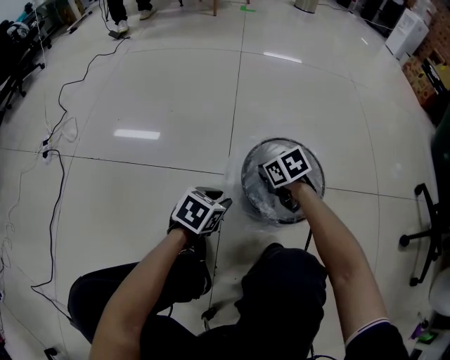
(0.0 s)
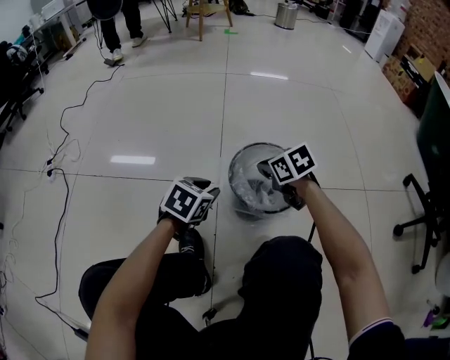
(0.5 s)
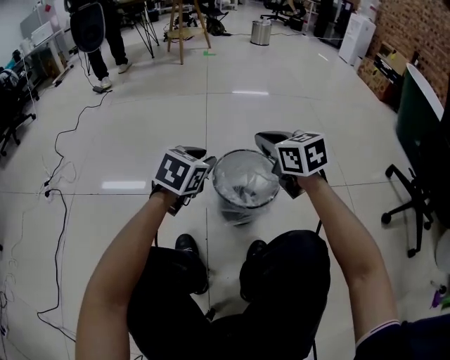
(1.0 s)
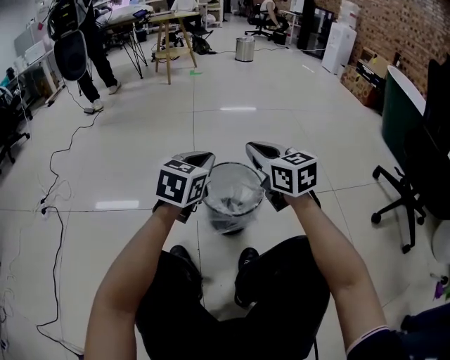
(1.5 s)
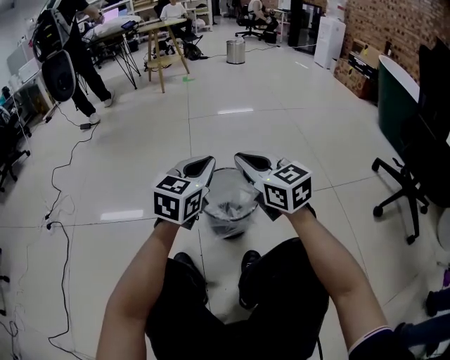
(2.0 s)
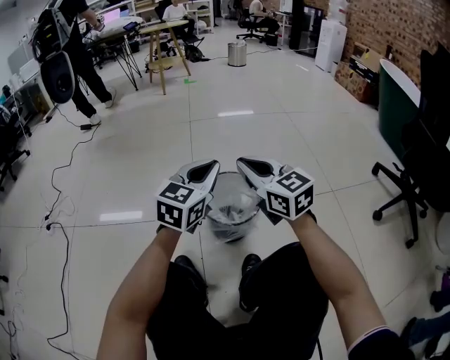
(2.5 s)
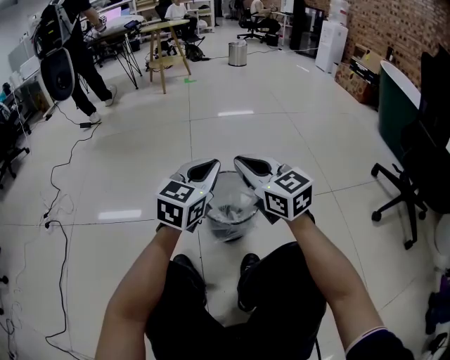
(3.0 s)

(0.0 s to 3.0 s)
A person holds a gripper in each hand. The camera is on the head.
0.0 s - 1.5 s: The grippers both shift upward by about 30 cm. The right gripper tips its fingers upward by some 40 degrees. The left gripper rotates some 30 degrees, and closes its fingers.
1.5 s - 3.0 s: The grippers make only small movements.

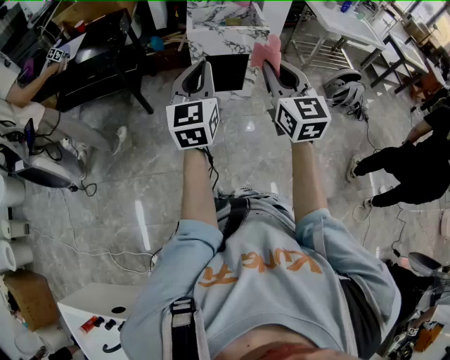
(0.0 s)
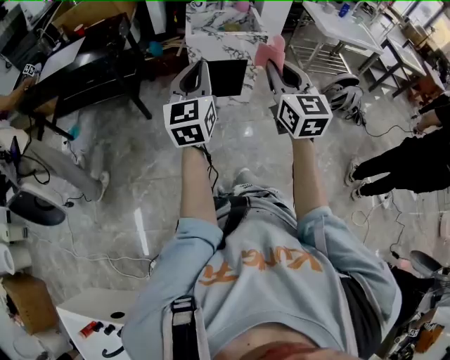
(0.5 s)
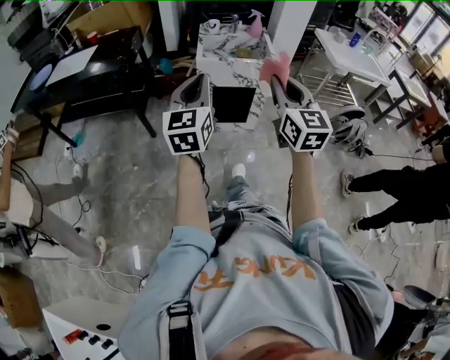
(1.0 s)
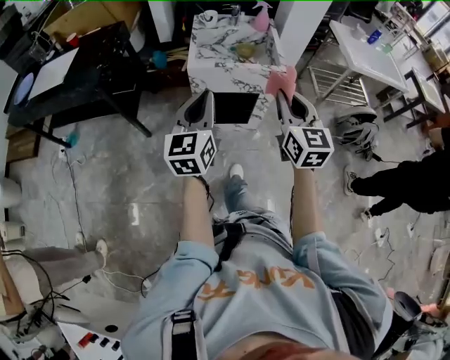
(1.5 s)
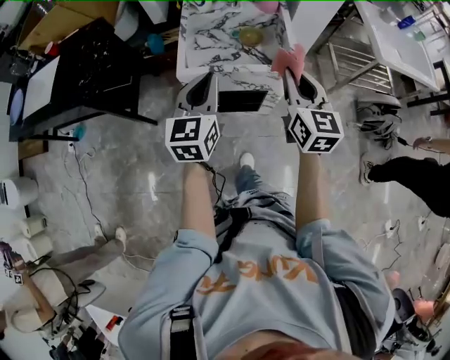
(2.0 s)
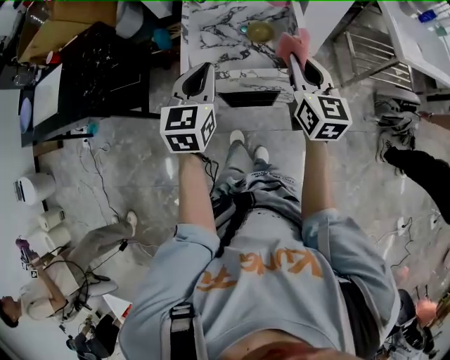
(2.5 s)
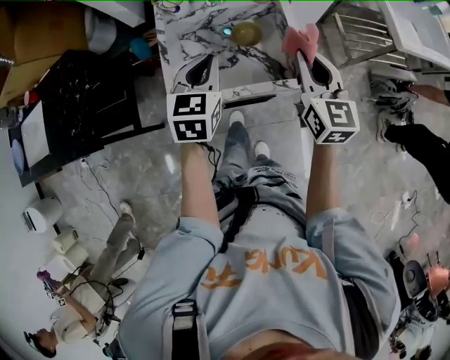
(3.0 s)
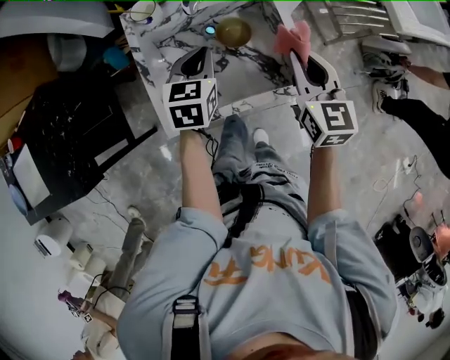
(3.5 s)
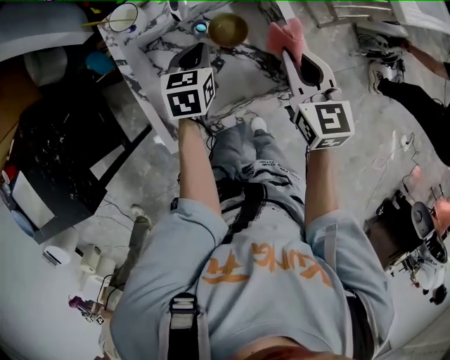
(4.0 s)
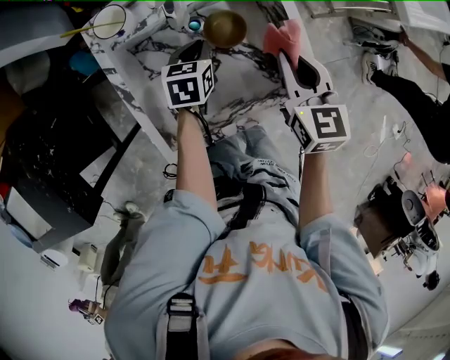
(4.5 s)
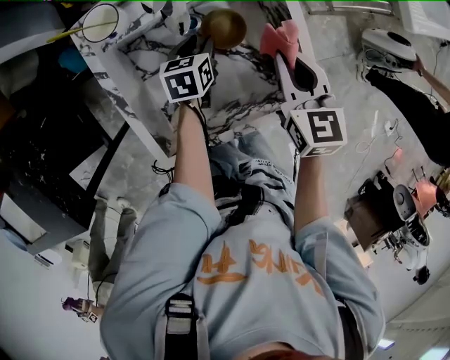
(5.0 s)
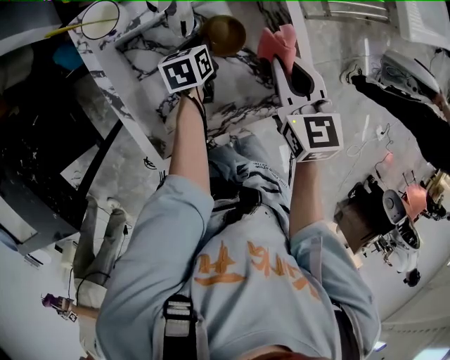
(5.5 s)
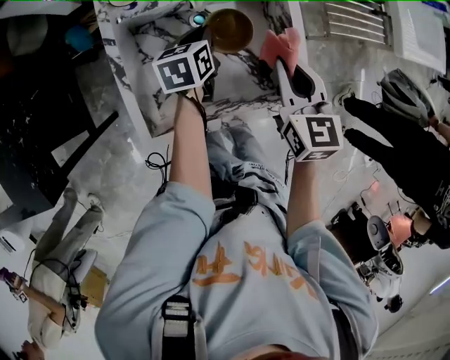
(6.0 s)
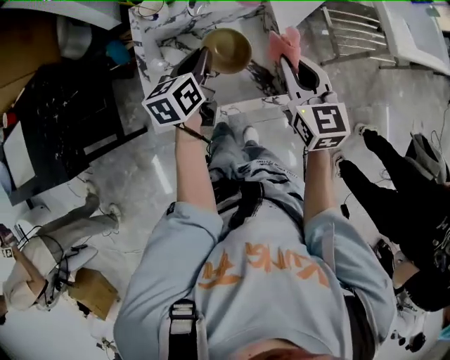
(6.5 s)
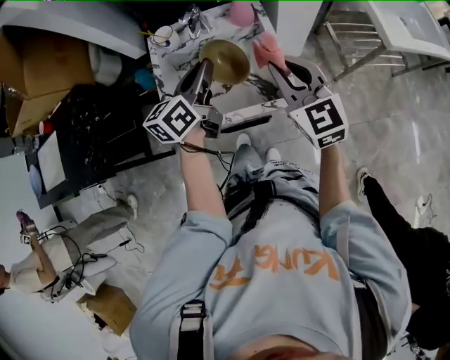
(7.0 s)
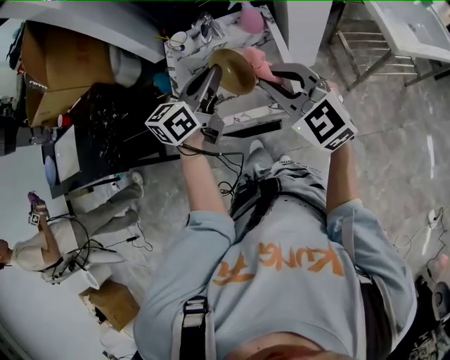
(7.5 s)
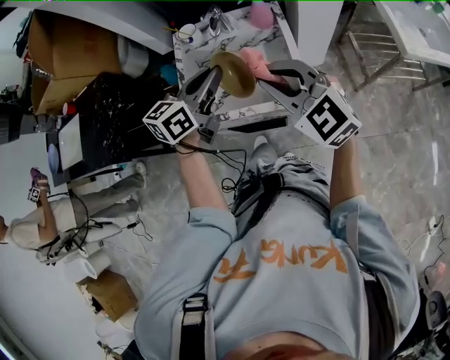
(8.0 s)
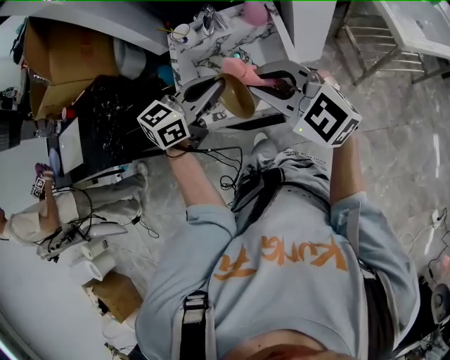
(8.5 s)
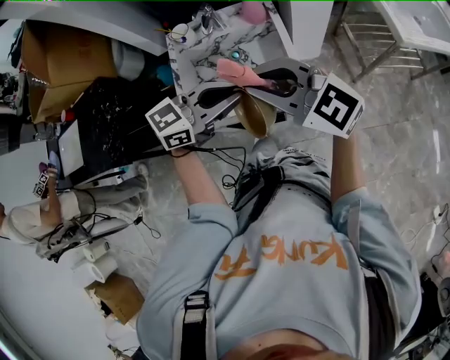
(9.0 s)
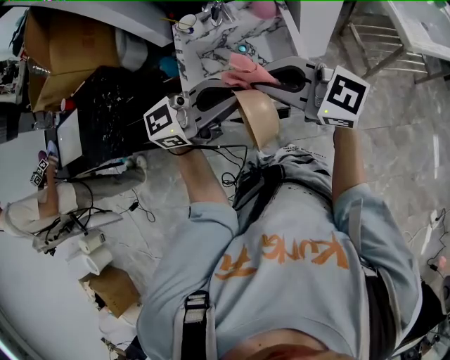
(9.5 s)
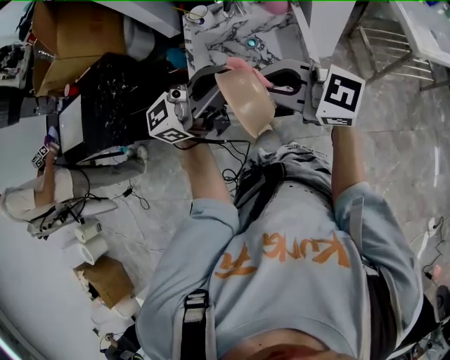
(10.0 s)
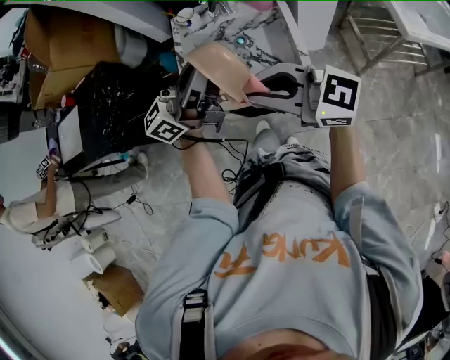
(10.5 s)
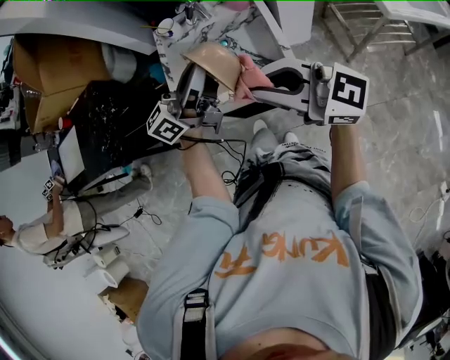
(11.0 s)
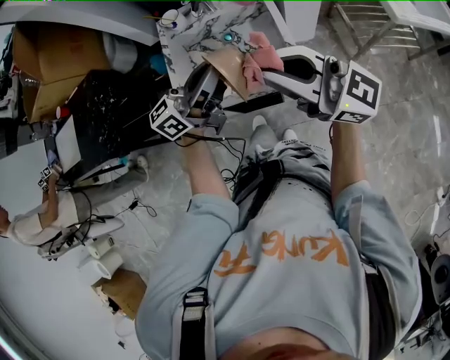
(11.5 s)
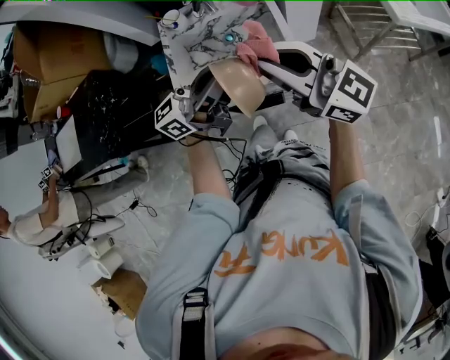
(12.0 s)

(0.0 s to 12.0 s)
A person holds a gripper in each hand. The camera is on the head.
0.0 s - 2.0 s: The pair of grippers is taken forward, about 50 cm.
2.0 s - 4.0 s: Both grippers move forward and downward, approximately 35 cm. The left gripper points its fingers roughly 30 degrees further downward; the right gripper rotates some 20 degrees.
4.0 s - 6.0 s: The left gripper goes downward and returns, approximately 15 cm each way, rotates approximately 20 degrees, and opens and closes again.
6.0 s - 8.0 s: The two grippers go roughly 25 cm upward and backward. The left gripper swivels about 30 degrees. Meanwhile the right gripper changes its angle by approximately 50 degrees.
8.0 s - 10.0 s: The right gripper shifts by some 10 cm, and rotates about 40 degrees; the left gripper ends up roughly 15 cm from where it was, and tips its fingers upward by about 30 degrees.
10.0 s - 12.0 s: The right gripper moves some 10 cm, and swivels some 30 degrees. Meanwhile the left gripper goes some 5 cm downward.

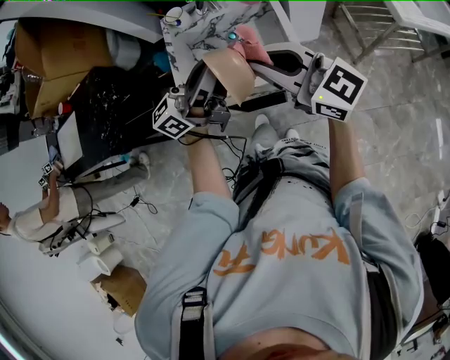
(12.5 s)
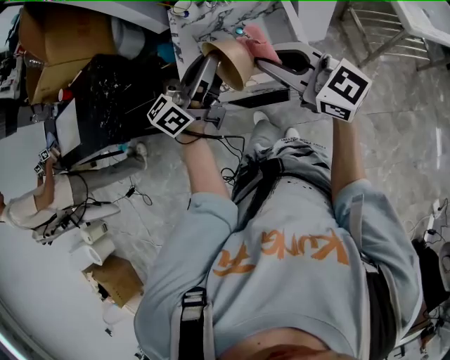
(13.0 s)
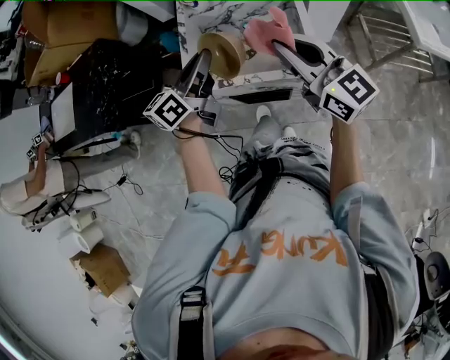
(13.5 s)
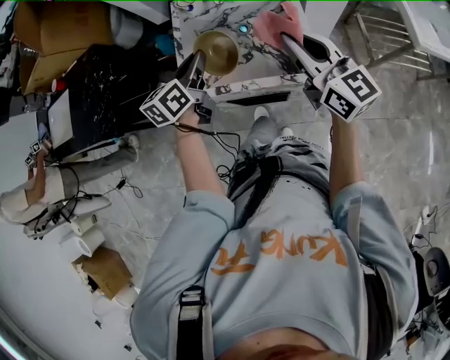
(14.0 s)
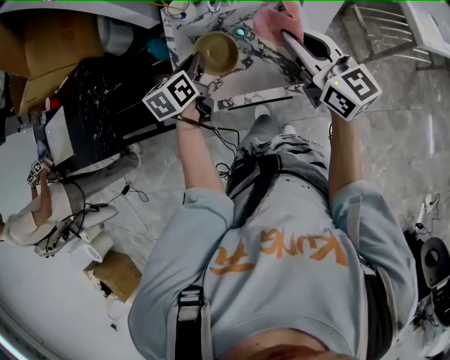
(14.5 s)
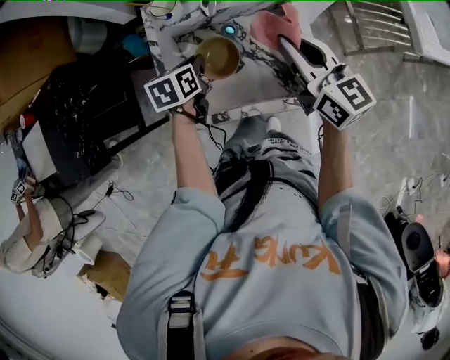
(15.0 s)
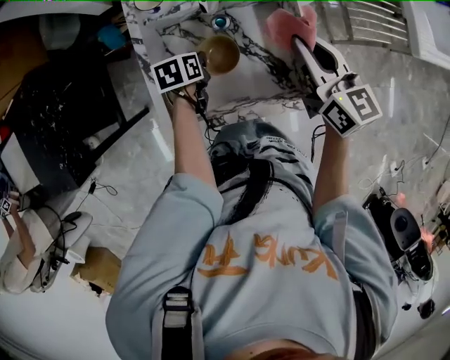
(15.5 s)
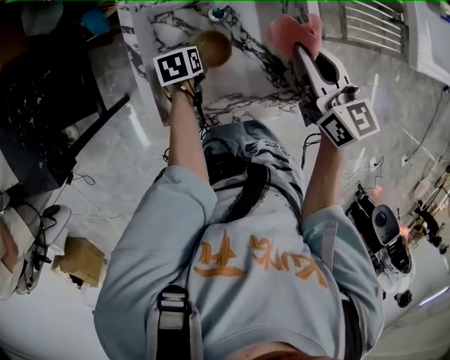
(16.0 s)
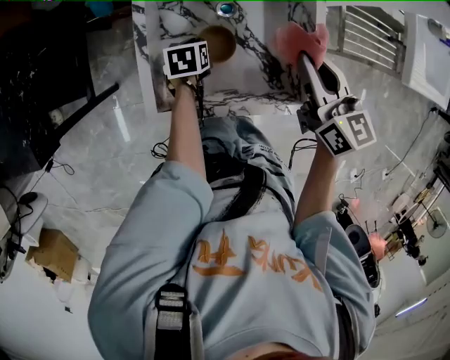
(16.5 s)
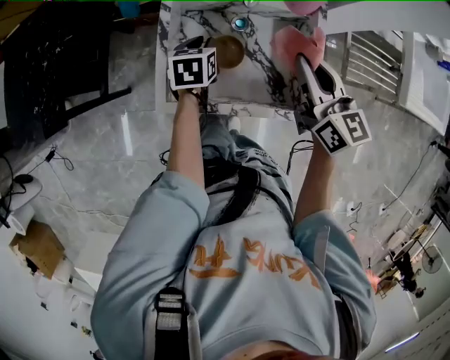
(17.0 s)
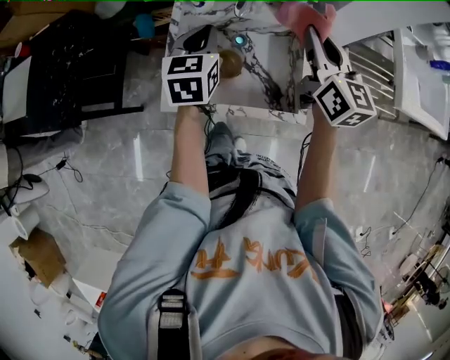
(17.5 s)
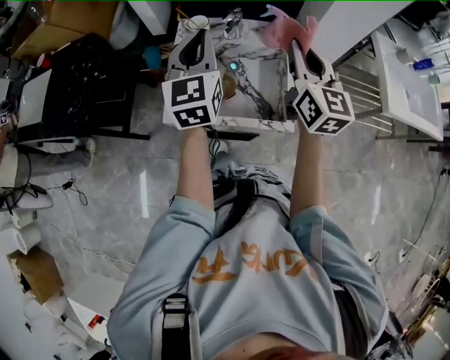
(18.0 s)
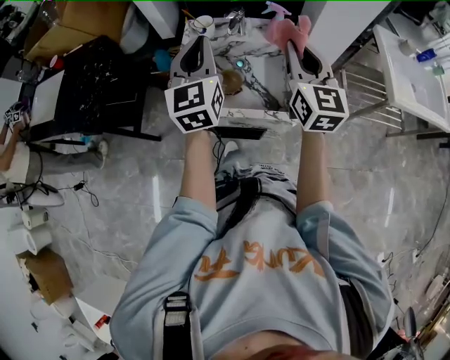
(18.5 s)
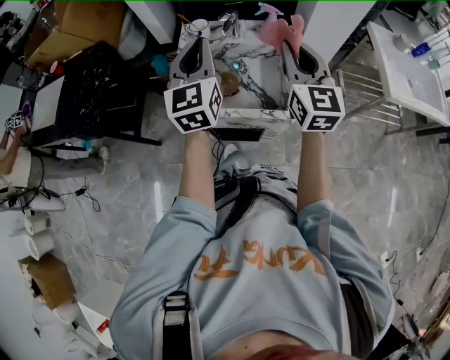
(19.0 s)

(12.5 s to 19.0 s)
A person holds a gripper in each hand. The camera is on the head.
12.5 s - 14.5 s: The left gripper is displaced downward, forward and to the left by about 25 cm, and tilts its fingers about 60 degrees downward. The right gripper travels forward and downward by approximately 15 cm, and swivels some 20 degrees.
14.5 s - 17.0 s: The right gripper shifts approximately 10 cm downward and forward. Meanwhile the left gripper is displaced downward by some 10 cm.
17.0 s - 19.0 s: The left gripper is displaced upward by approximately 35 cm, and tips its fingers upward by some 50 degrees. The right gripper heads upward and backward, covering roughly 15 cm, and turns by roughly 30 degrees.

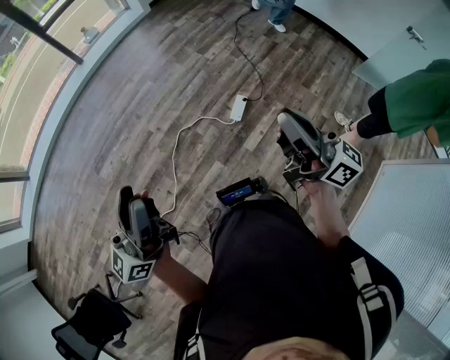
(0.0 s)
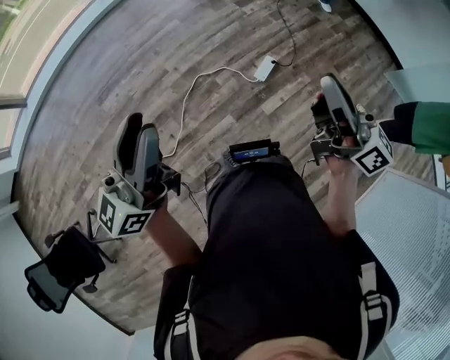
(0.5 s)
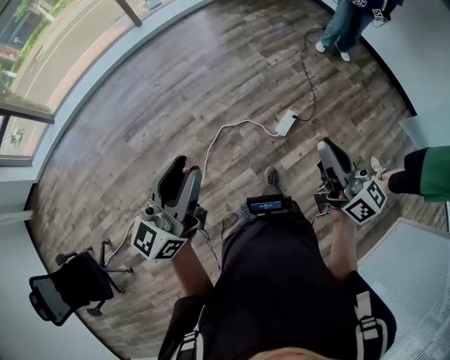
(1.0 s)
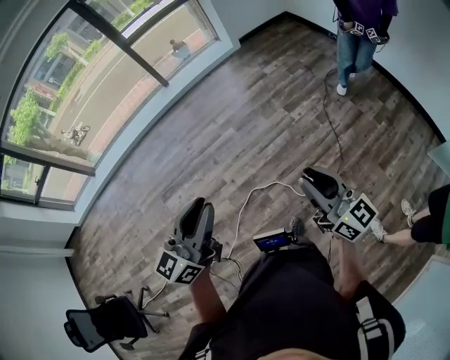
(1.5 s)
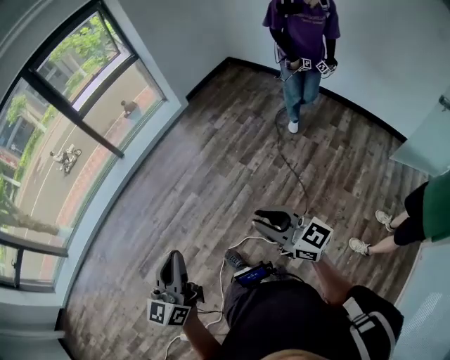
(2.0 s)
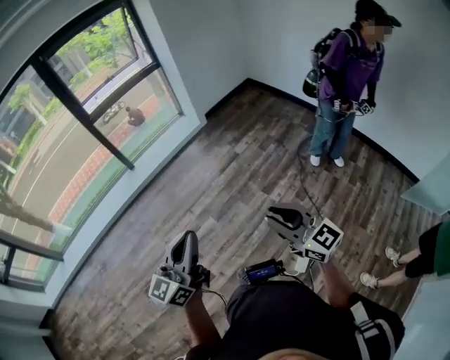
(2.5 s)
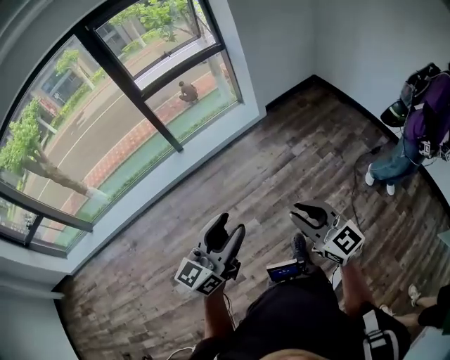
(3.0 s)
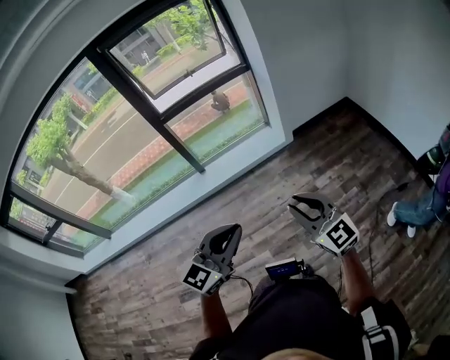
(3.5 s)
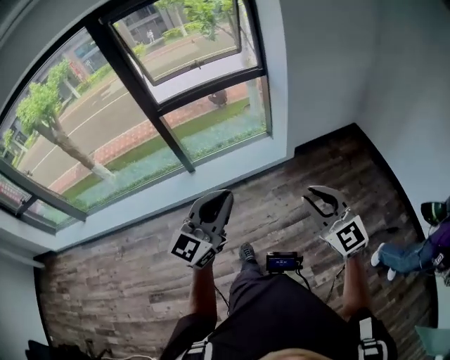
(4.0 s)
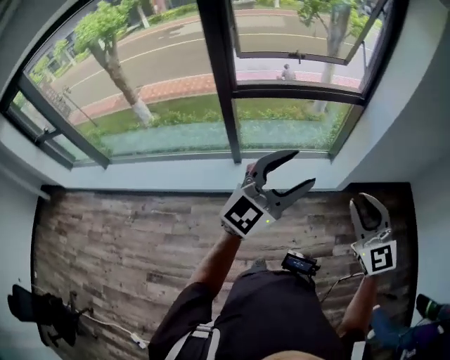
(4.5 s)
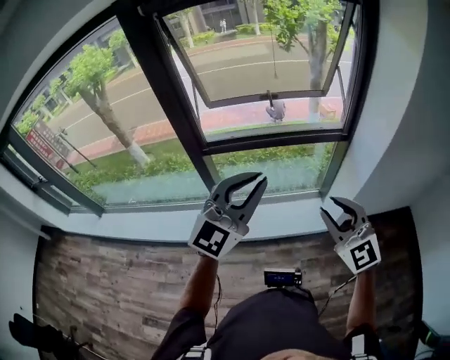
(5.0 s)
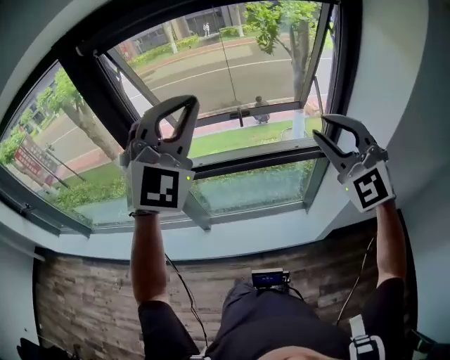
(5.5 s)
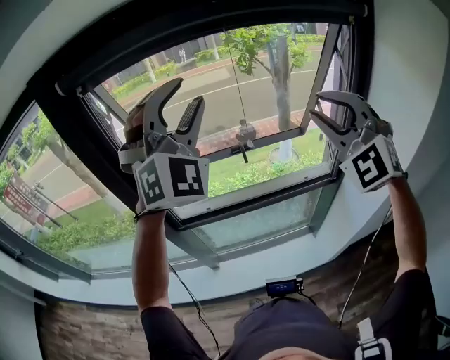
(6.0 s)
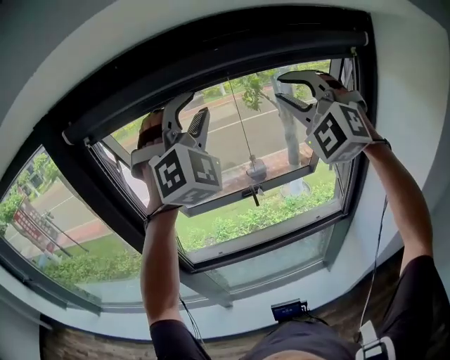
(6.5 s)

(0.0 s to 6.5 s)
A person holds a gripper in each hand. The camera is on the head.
0.0 s - 2.0 s: The grippers both shift forward by approximately 35 cm. The left gripper swivels some 20 degrees, and closes, while the right gripper turns by some 30 degrees.
2.0 s - 4.5 s: The pair of grippers is taken forward, approximately 1 m. The right gripper changes its angle by approximately 40 degrees. The left gripper changes its angle by roughly 30 degrees, and opens its fingers.
4.5 s - 6.5 s: The two grippers travel together, forward, approximately 60 cm. The two grippers go approximately 40 cm upward. The left gripper rolls clockwise, seen from behind, by some 70 degrees, and closes and opens again; the right gripper rolls counterclockwise, seen from behind, by roughly 50 degrees.
